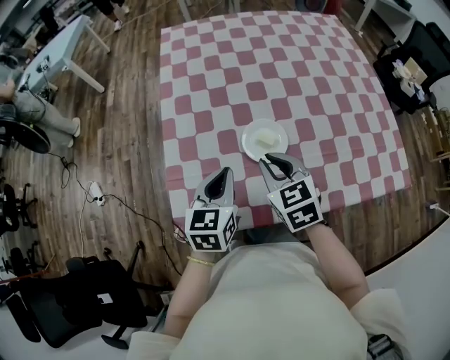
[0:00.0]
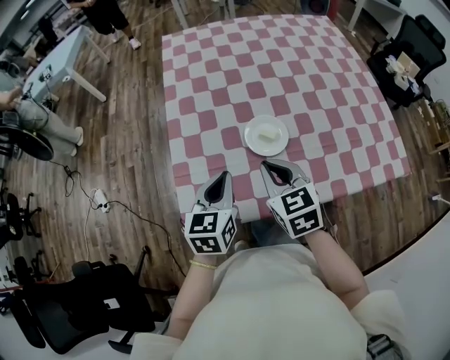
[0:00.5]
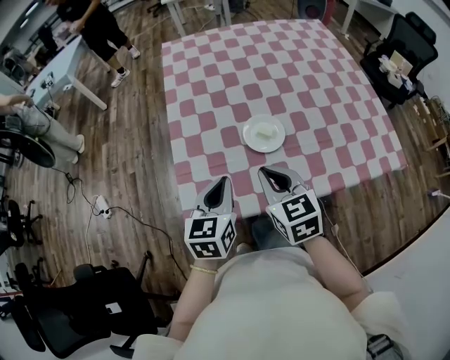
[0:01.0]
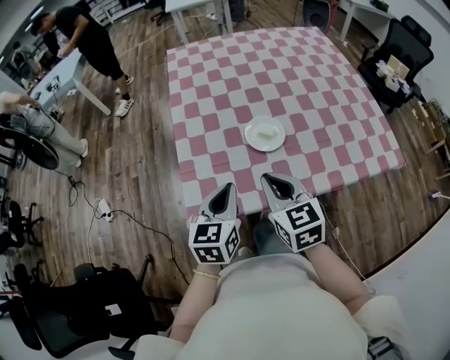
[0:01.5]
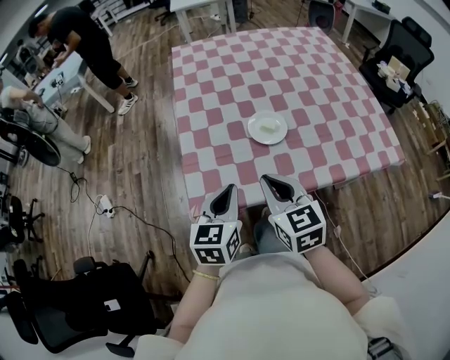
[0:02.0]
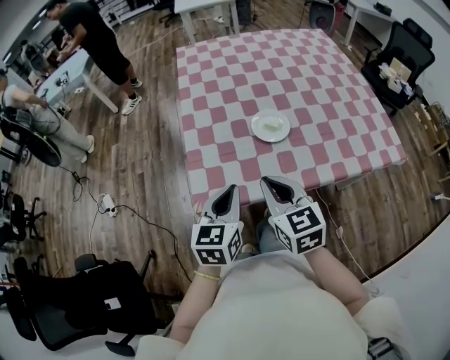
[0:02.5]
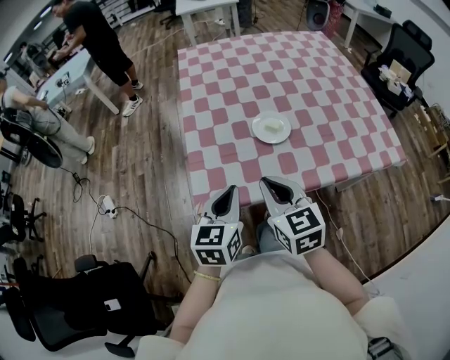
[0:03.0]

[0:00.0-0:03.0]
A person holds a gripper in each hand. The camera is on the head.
0:00.0 to 0:01.5: The left gripper moves backward, about 10 cm; the right gripper heads backward and upward, covering approximately 15 cm.
0:01.5 to 0:03.0: The two grippers go some 5 cm backward.

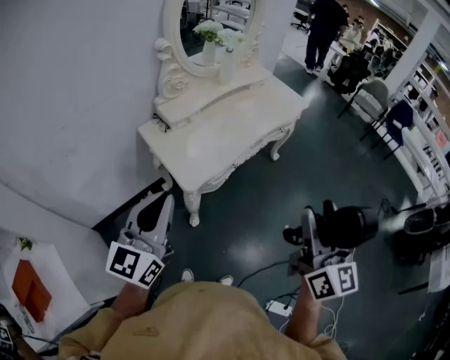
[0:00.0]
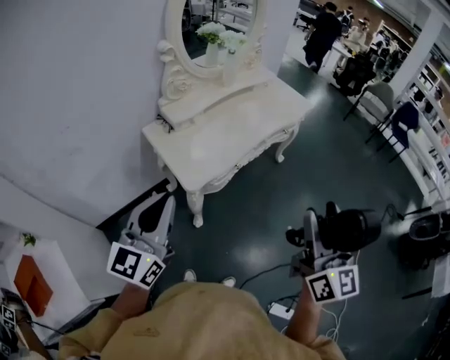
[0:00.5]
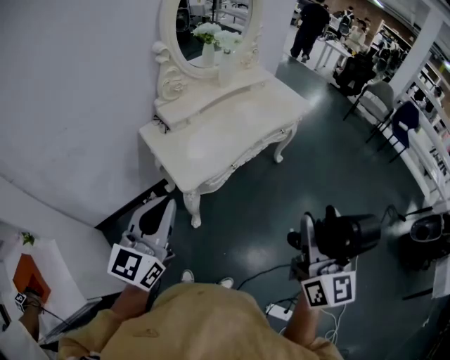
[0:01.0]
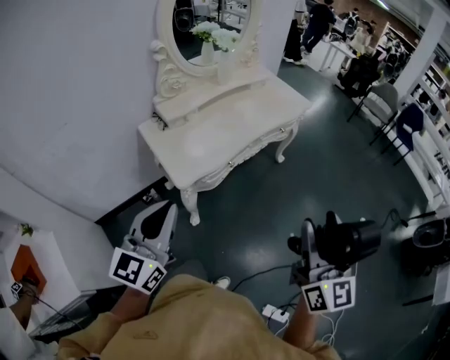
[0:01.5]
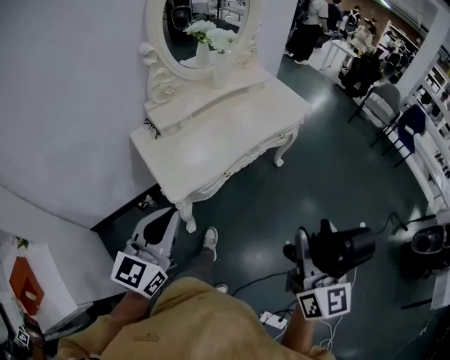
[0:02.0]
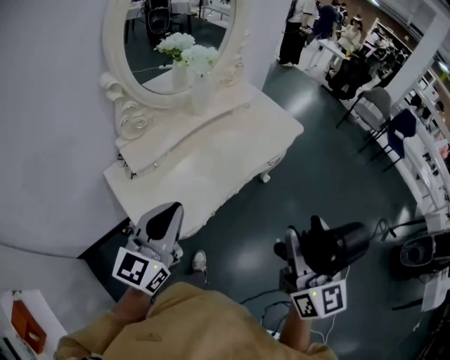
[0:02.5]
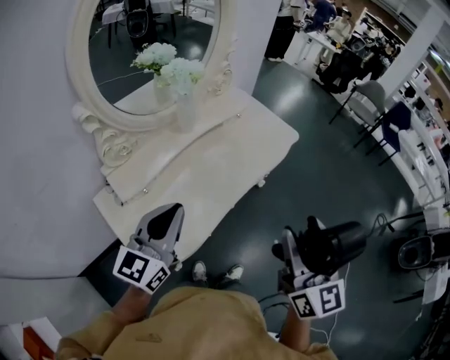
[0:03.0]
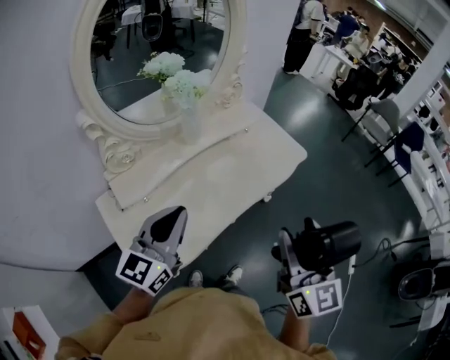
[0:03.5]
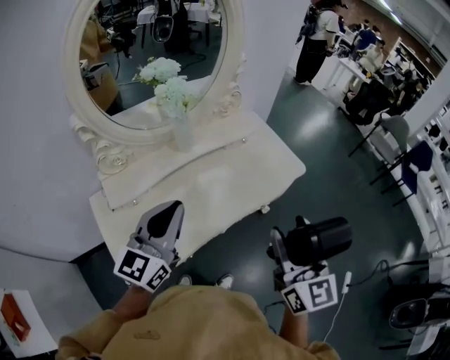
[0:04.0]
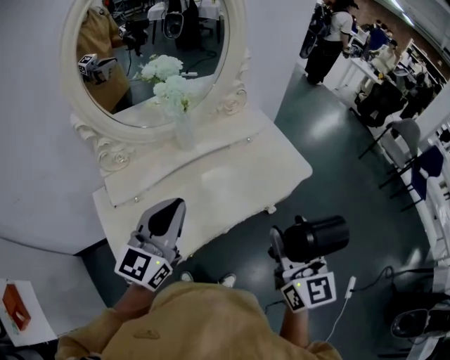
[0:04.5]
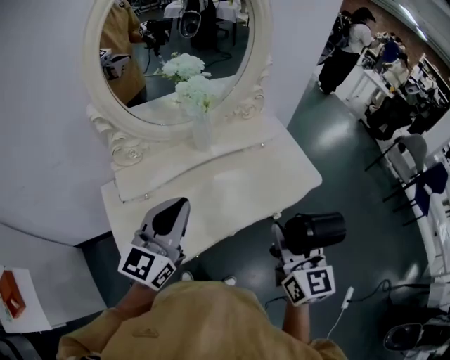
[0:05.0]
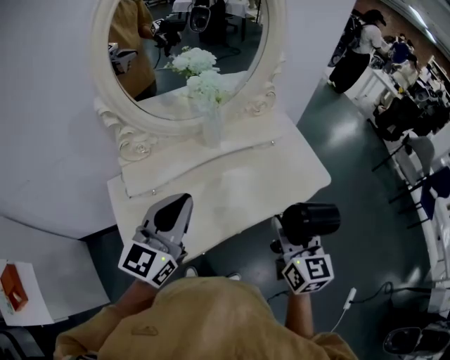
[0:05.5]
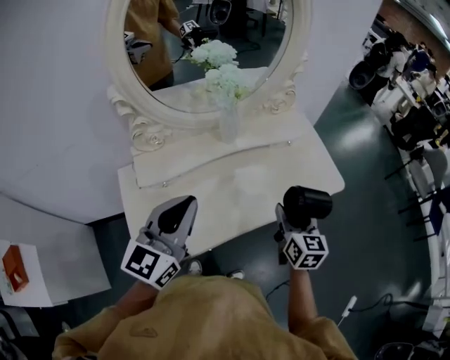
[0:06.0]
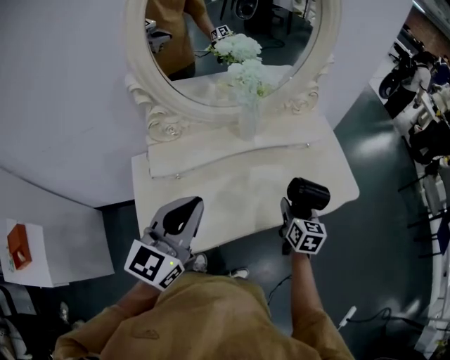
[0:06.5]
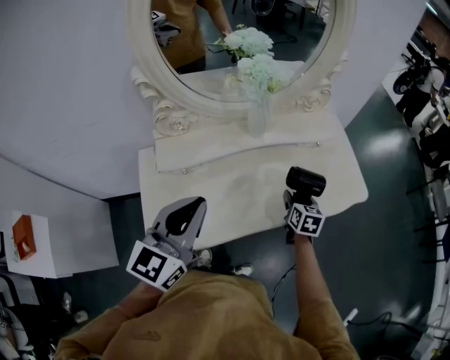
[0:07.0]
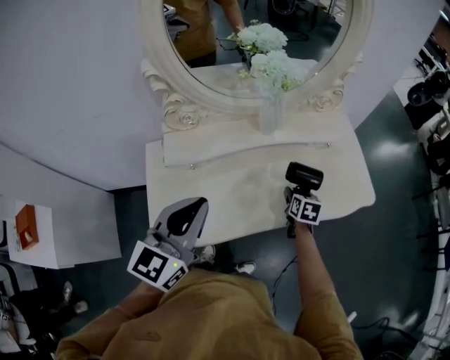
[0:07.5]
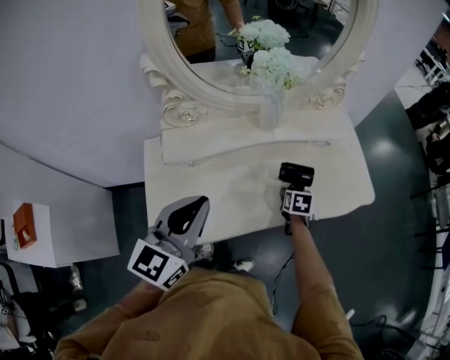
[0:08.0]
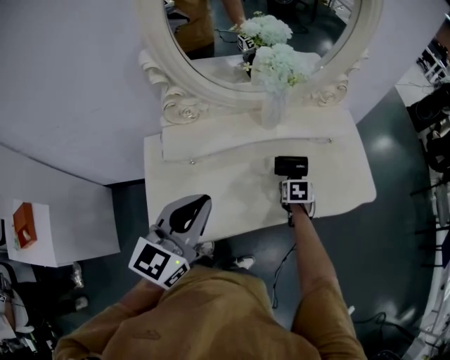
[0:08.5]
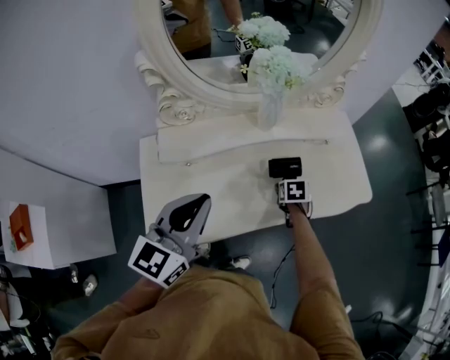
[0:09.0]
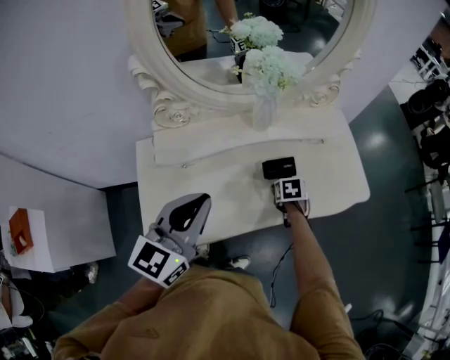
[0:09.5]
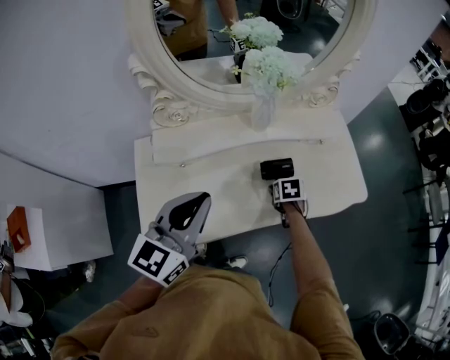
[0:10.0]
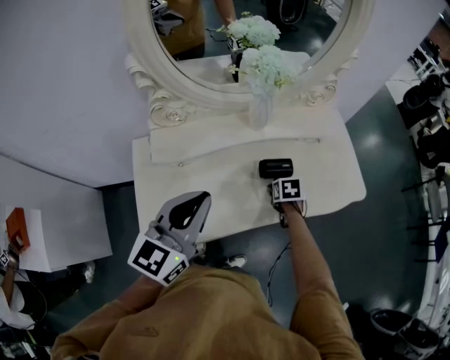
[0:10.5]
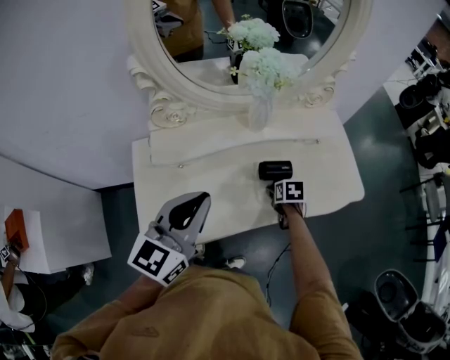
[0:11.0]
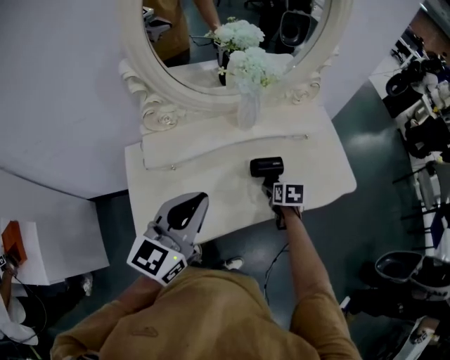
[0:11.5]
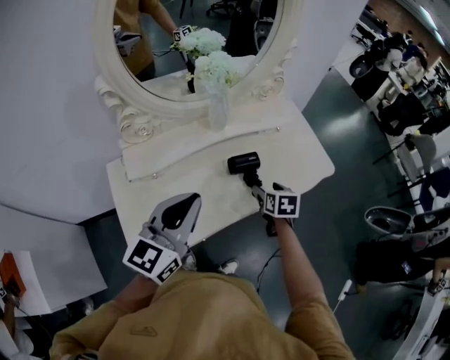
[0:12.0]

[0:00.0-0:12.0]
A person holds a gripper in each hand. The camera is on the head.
0:00.0 to 0:02.0: The right gripper moves to the right, some 5 cm; the left gripper travels to the right, forward and downward by roughly 10 cm.
0:02.0 to 0:04.0: Both grippers are carried forward, roughly 40 cm.
0:04.0 to 0:06.0: The right gripper is displaced downward and forward by roughly 25 cm, and swivels roughly 20 degrees.
0:06.0 to 0:08.0: The right gripper travels downward and forward by about 25 cm, and points its fingers roughly 40 degrees further downward.
0:08.0 to 0:10.0: The right gripper changes its angle by about 20 degrees.
0:10.0 to 0:12.0: The right gripper heads upward, covering about 10 cm, and turns by about 30 degrees.

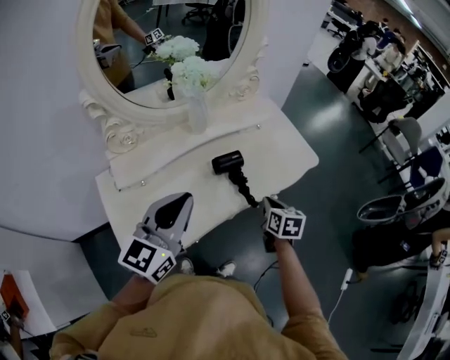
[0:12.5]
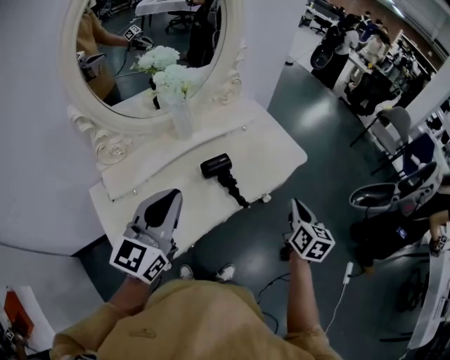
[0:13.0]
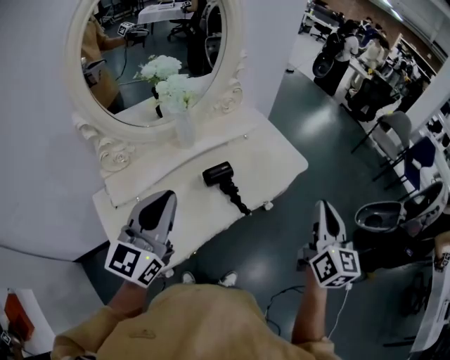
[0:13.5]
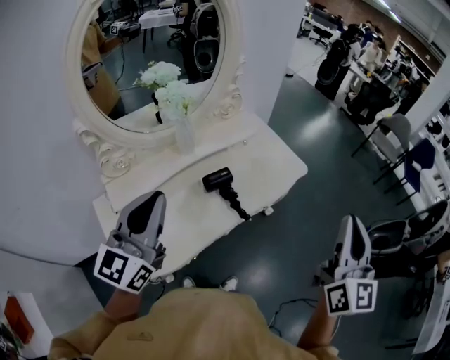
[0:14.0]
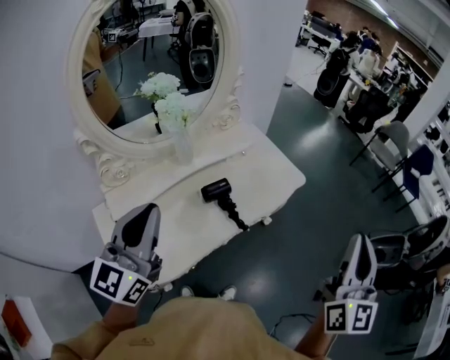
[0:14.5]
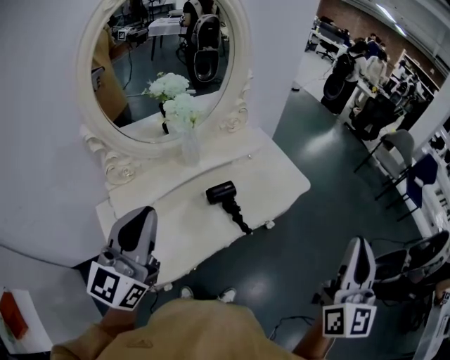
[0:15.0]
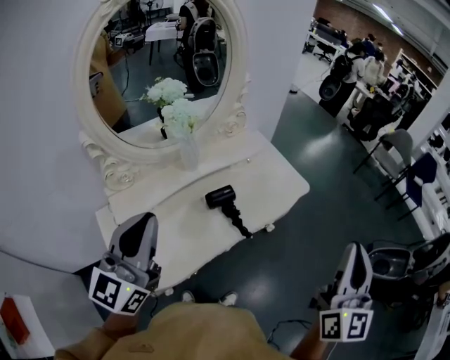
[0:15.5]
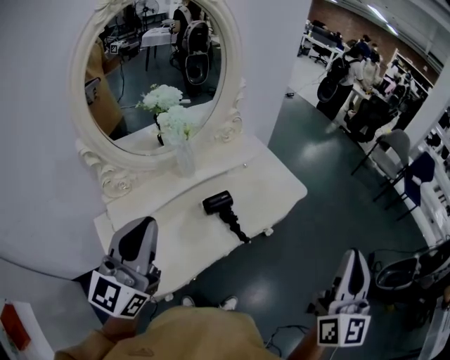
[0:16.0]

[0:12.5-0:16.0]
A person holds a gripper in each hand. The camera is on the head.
0:12.5 to 0:14.5: The right gripper travels upward and to the right by about 40 cm, and points its fingers some 50 degrees further upward, while the left gripper is displaced upward by about 10 cm.
0:14.5 to 0:16.0: The grippers move only a little.

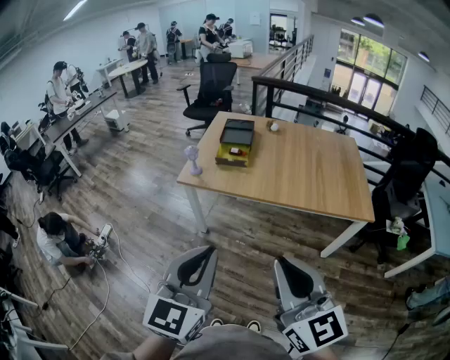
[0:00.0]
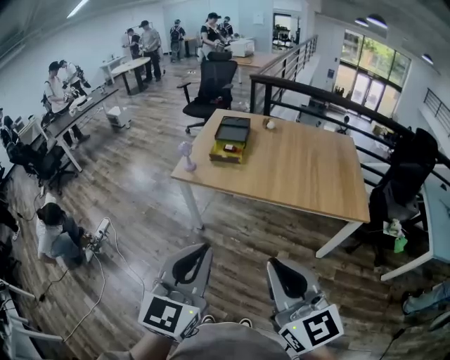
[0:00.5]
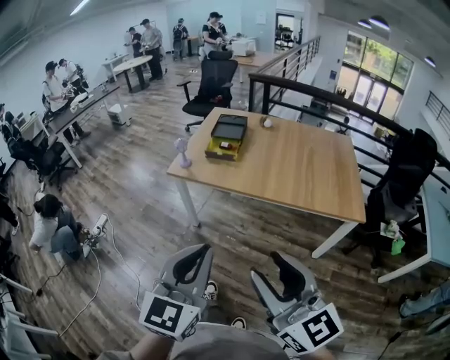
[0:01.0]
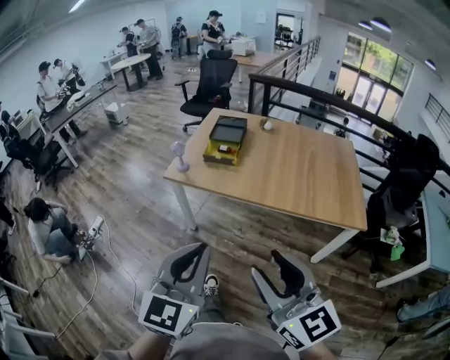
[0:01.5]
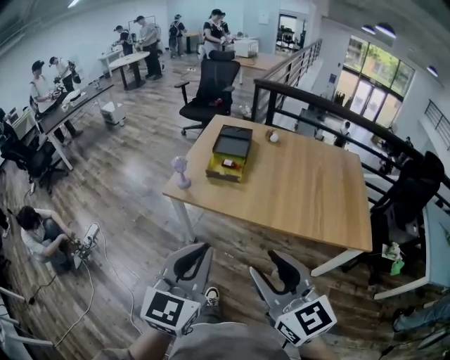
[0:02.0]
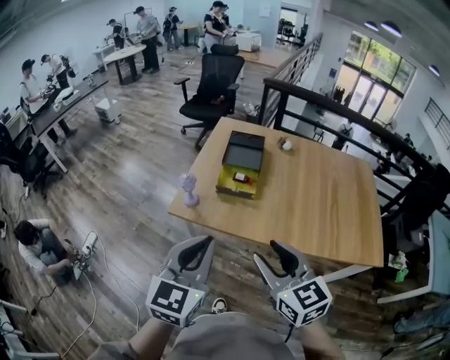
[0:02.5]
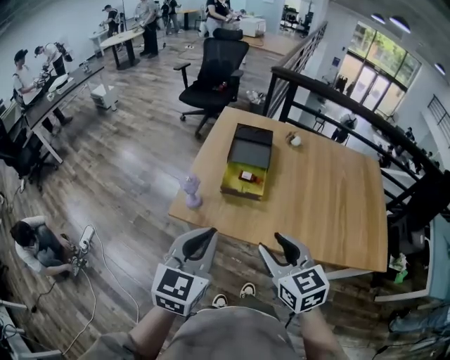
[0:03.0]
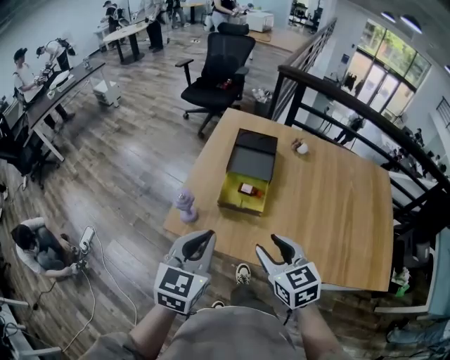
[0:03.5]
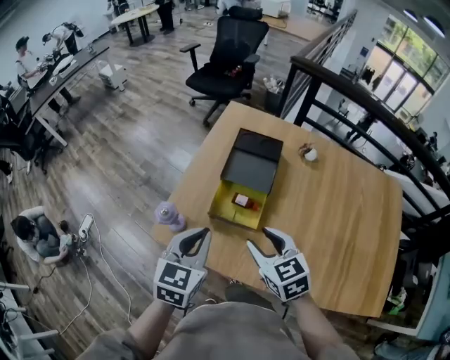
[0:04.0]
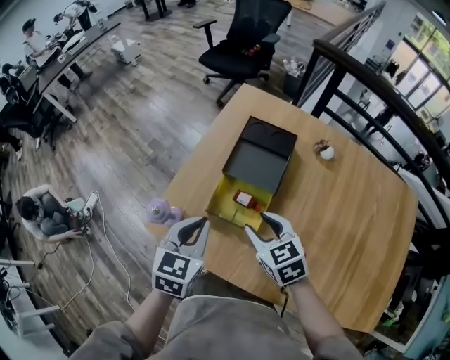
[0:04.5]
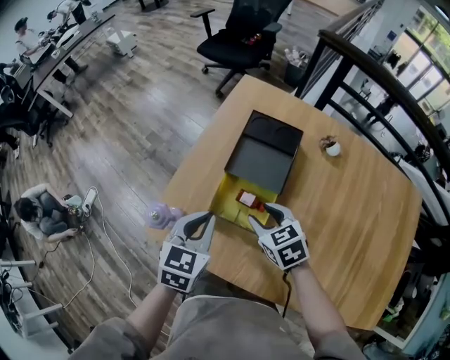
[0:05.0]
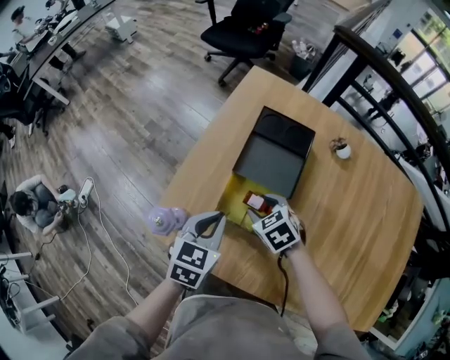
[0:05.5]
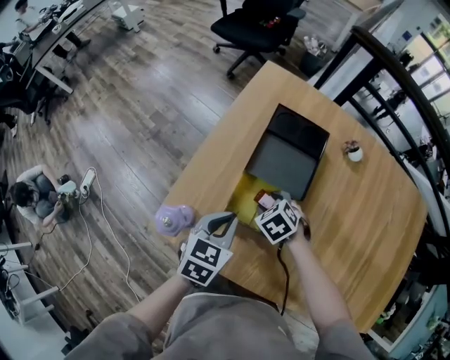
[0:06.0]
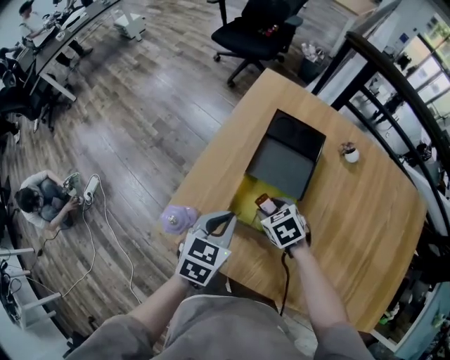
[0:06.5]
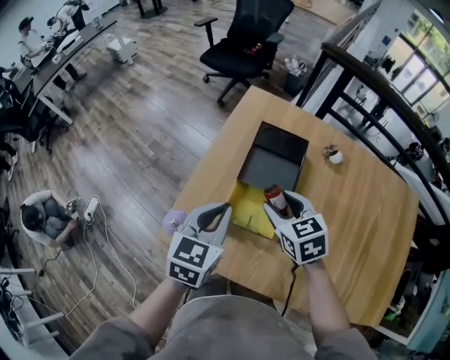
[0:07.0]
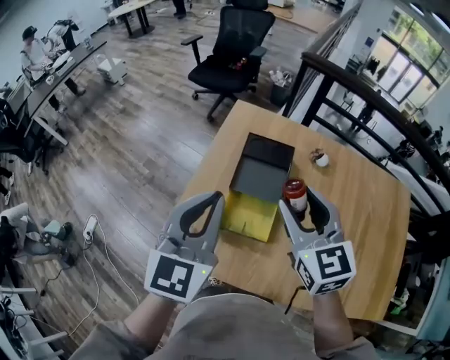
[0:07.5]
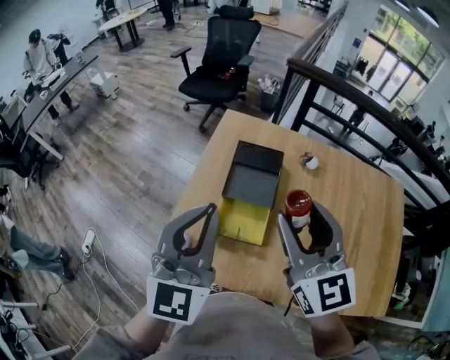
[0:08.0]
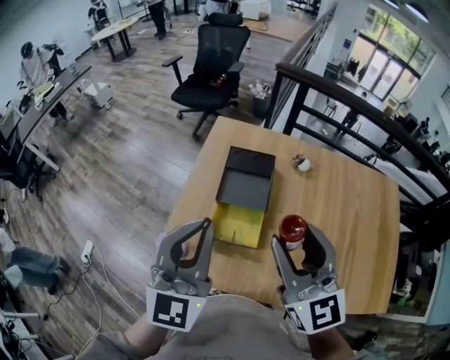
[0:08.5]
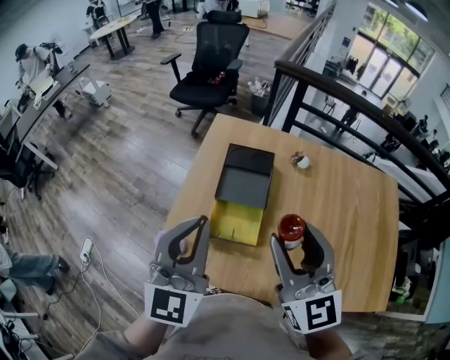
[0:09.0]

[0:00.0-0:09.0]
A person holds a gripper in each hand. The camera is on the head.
0:00.0 to 0:02.0: Both grippers move forward, some 15 cm. The right gripper opens its fingers.
0:02.0 to 0:04.5: The pair of grippers is taken forward, approximately 60 cm. The left gripper turns by roughly 30 degrees; the right gripper is displaced downward by roughly 25 cm, and angles its fingers downward, by approximately 30 degrees.
0:04.5 to 0:07.0: Both grippers travel together forward, about 10 cm. The left gripper reaches roughly 10 cm downward, then returns. The right gripper goes downward and returns, approximately 15 cm each way.
0:07.0 to 0:09.0: The right gripper moves upward and backward, approximately 25 cm, and tips its fingers upward by about 40 degrees. The left gripper travels upward by about 20 cm, and turns by about 40 degrees.
